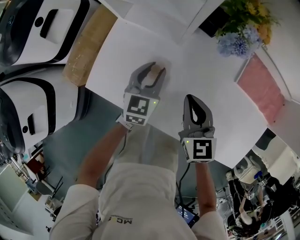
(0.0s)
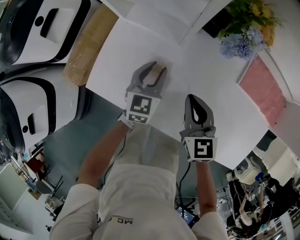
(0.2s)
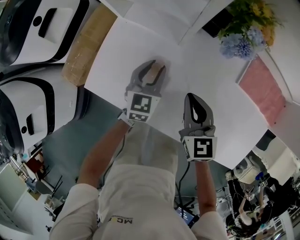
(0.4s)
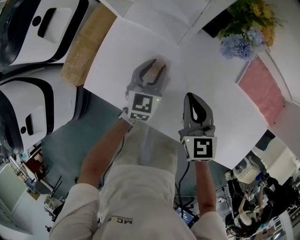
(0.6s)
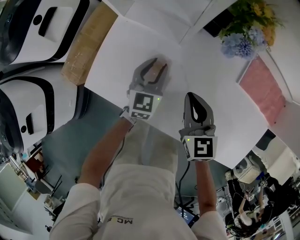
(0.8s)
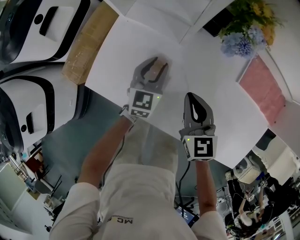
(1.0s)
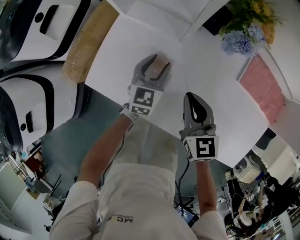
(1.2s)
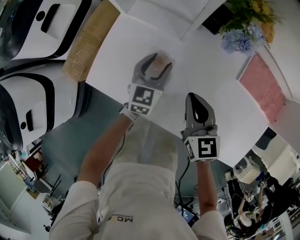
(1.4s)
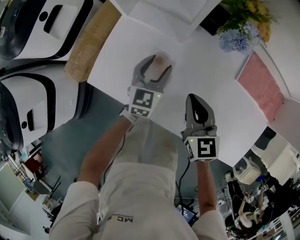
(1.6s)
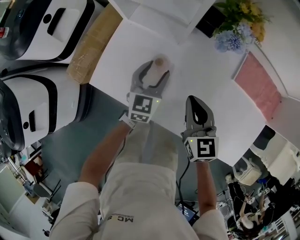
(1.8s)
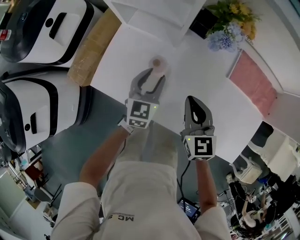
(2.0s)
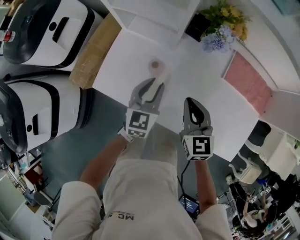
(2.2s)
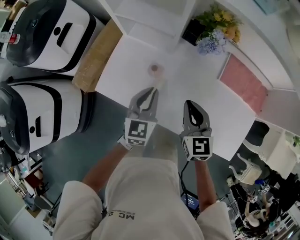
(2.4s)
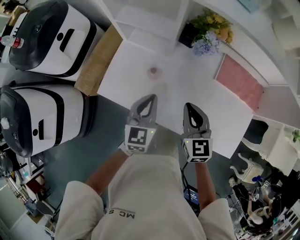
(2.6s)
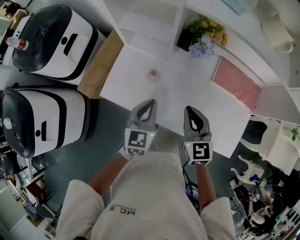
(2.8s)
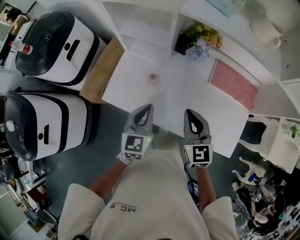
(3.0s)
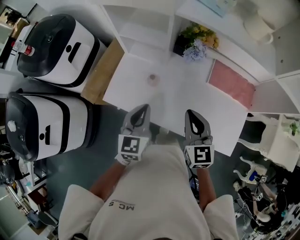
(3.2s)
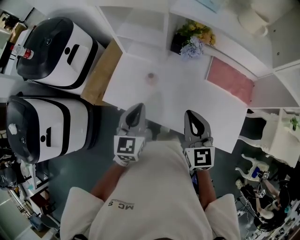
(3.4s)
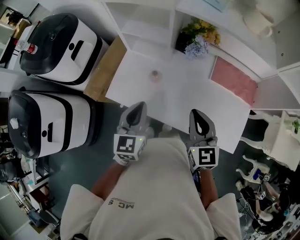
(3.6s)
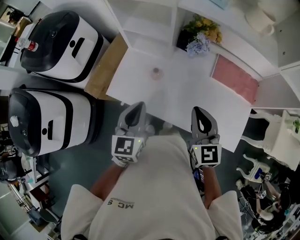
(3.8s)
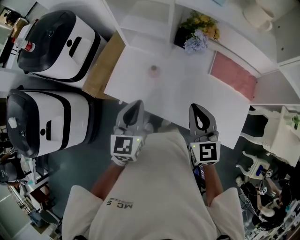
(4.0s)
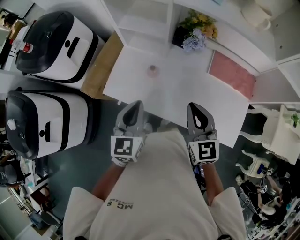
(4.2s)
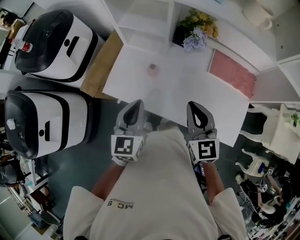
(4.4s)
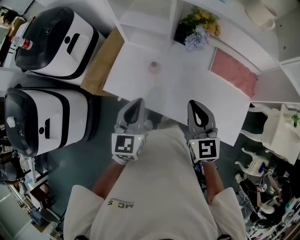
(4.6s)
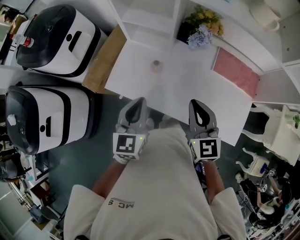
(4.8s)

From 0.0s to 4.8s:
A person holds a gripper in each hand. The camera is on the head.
From 0.0s to 1.6s: The left gripper opens.
From 1.6s to 3.2s: Both grippers move upward and backward, some 30 cm. The left gripper closes.
From 3.2s to 4.8s: The grippers move only a little.

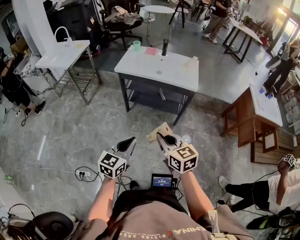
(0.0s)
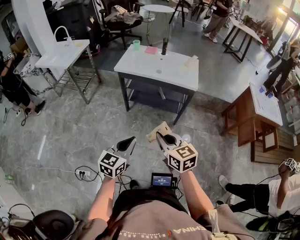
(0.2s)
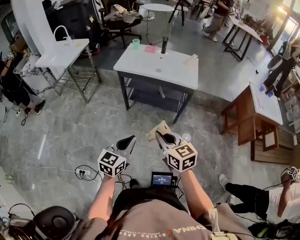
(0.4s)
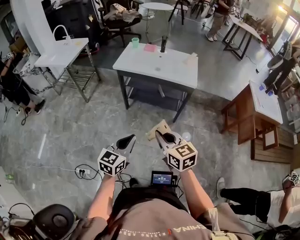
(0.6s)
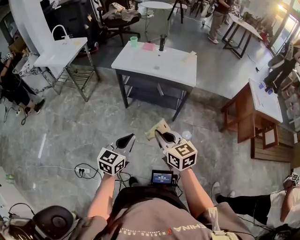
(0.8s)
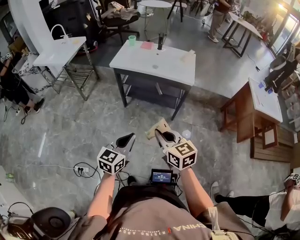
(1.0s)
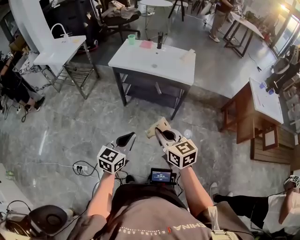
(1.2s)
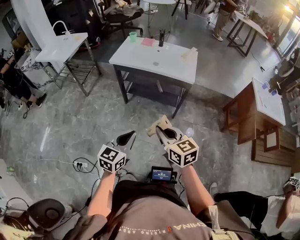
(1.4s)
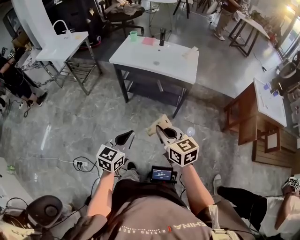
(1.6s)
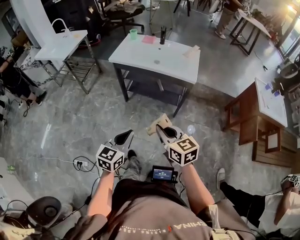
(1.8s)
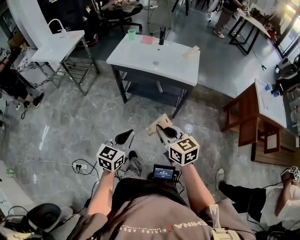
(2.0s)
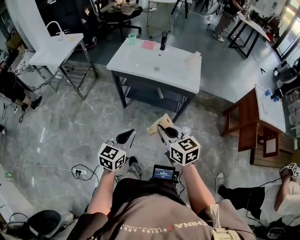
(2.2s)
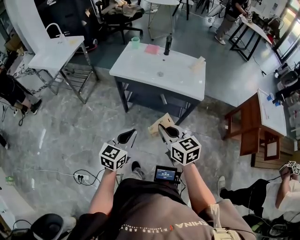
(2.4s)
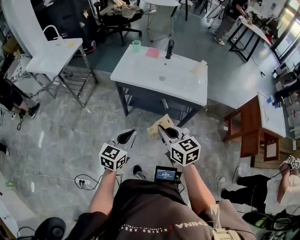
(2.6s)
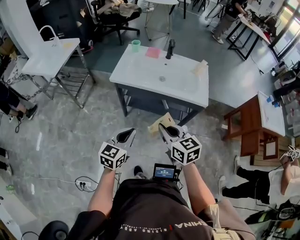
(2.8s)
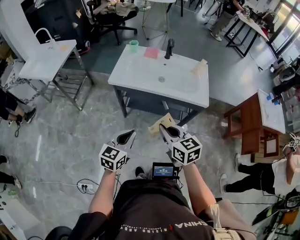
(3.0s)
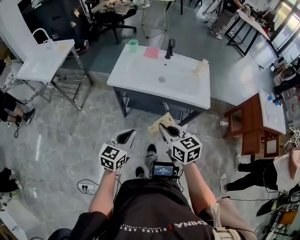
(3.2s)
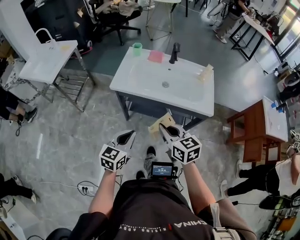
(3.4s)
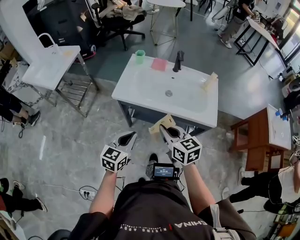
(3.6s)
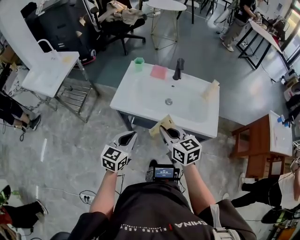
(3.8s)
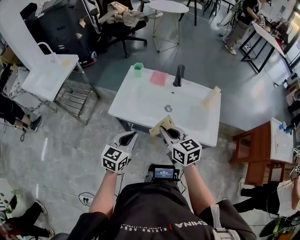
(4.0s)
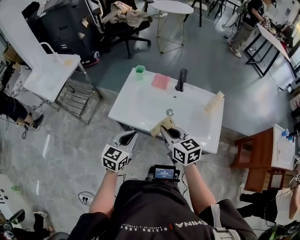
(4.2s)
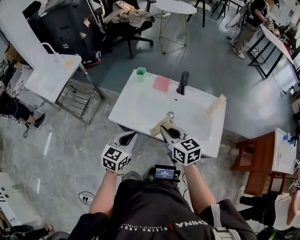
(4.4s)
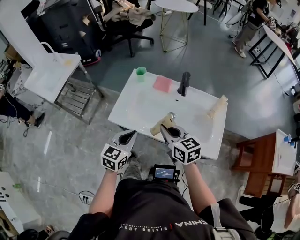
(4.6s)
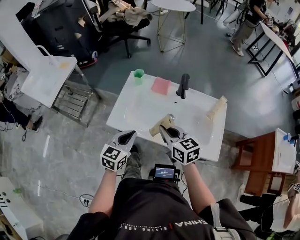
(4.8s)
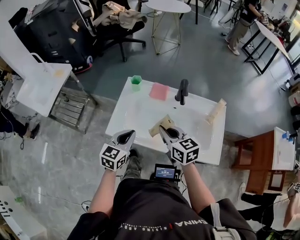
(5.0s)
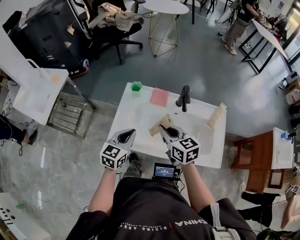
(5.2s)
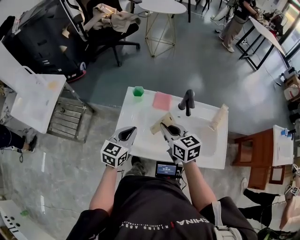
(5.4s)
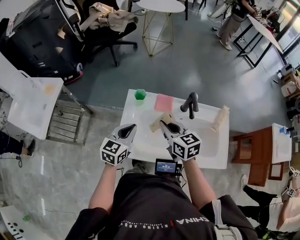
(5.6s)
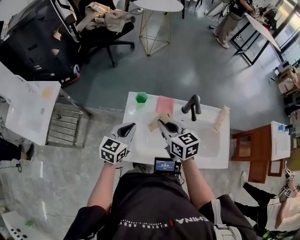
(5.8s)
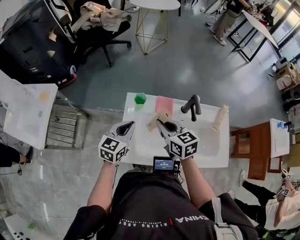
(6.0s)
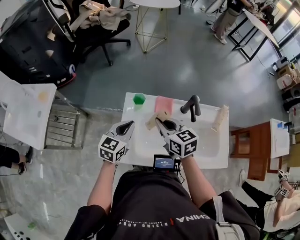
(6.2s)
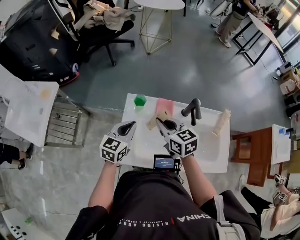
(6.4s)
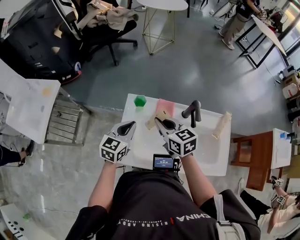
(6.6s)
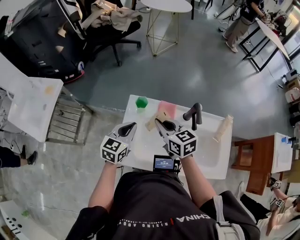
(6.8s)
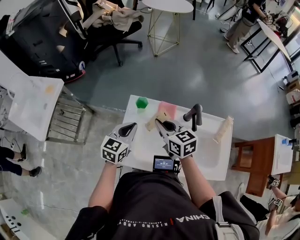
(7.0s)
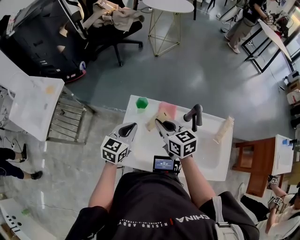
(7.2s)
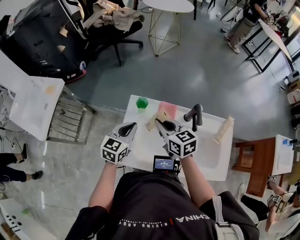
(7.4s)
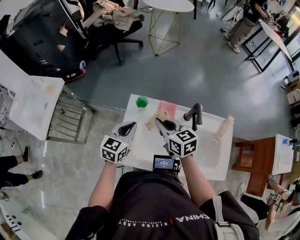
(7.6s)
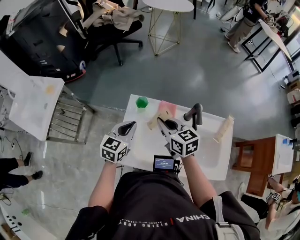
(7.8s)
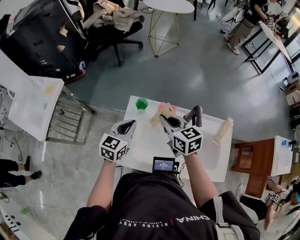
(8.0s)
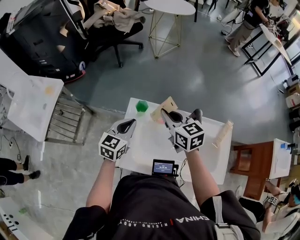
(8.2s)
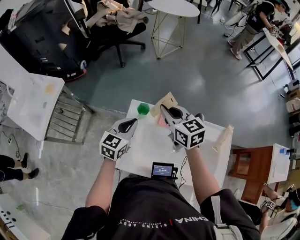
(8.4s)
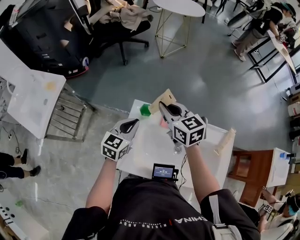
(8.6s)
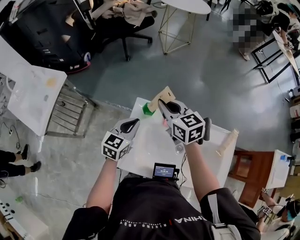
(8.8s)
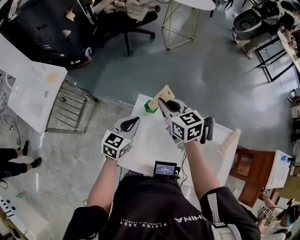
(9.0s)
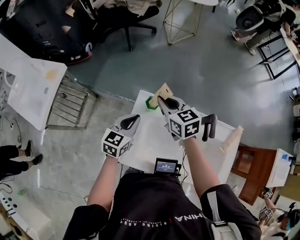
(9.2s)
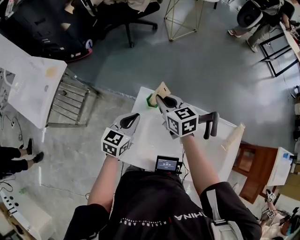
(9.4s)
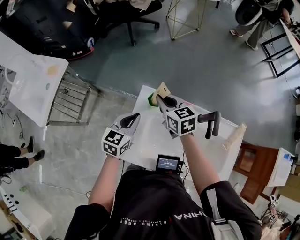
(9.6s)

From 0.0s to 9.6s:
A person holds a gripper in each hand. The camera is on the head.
From 0.0s to 1.6s: Both grippers travel together to the right, some 5 cm.
From 1.6s to 3.2s: Both grippers travel together forward, some 30 cm.
From 3.2s to 4.8s: The two grippers go approximately 30 cm forward.
From 4.8s to 6.4s: The left gripper heads forward, covering approximately 25 cm, while the right gripper shifts roughly 20 cm forward and to the left.
From 6.4s to 8.0s: The grippers stay close to where they were, moving slightly.
From 8.0s to 9.6s: The right gripper shifts approximately 15 cm forward, to the left and downward, while the left gripper changes place by some 5 cm.

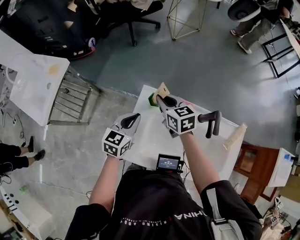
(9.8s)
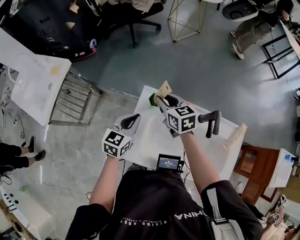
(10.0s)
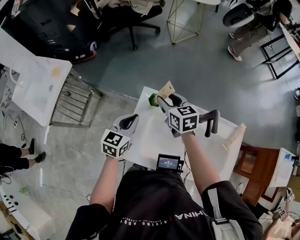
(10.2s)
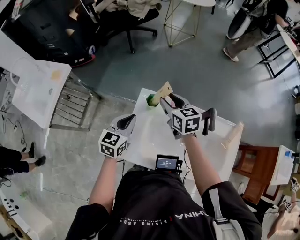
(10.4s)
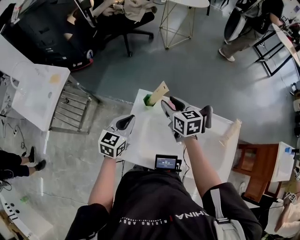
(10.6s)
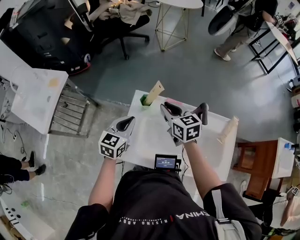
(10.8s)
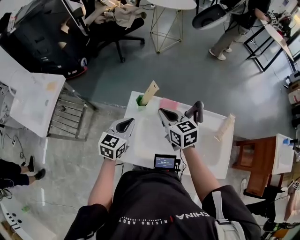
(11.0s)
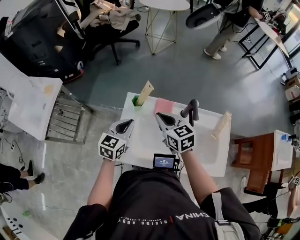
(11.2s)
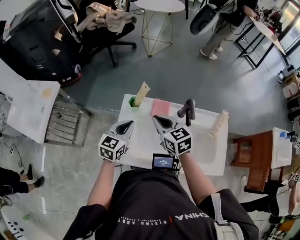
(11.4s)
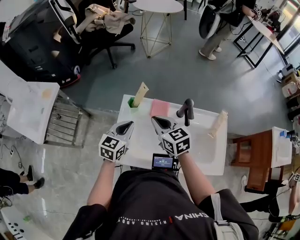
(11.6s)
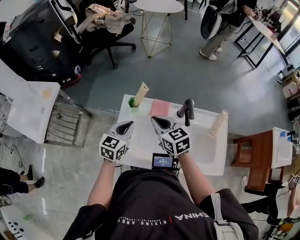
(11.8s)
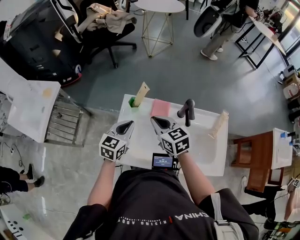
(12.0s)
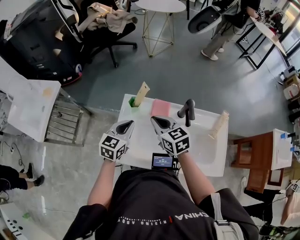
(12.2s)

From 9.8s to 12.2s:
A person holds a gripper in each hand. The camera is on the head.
From 9.8s to 11.0s: The left gripper shifts by approximately 5 cm, while the right gripper goes approximately 10 cm backward, to the right and upward, and opens, then closes again.
From 11.0s to 12.2s: The grippers stay close to where they were, moving slightly.

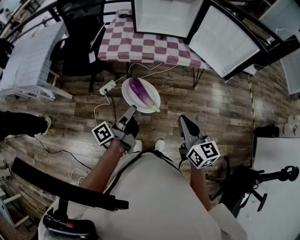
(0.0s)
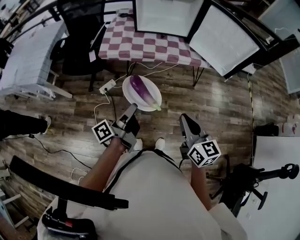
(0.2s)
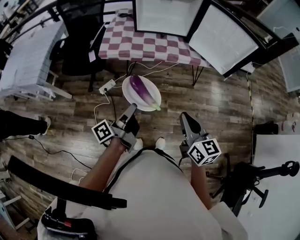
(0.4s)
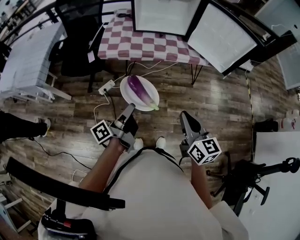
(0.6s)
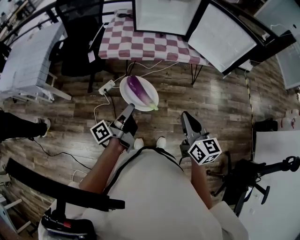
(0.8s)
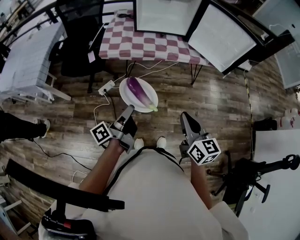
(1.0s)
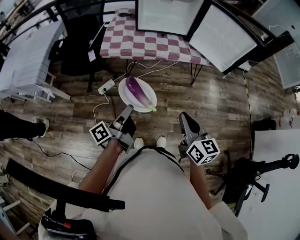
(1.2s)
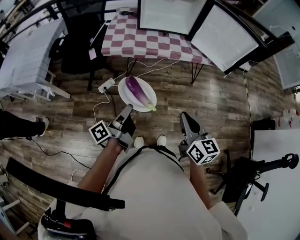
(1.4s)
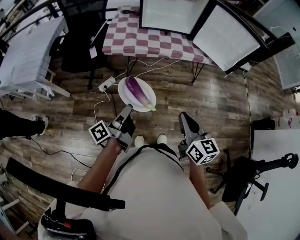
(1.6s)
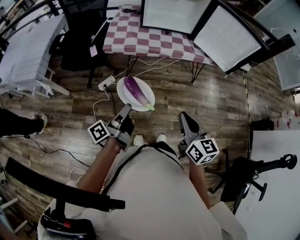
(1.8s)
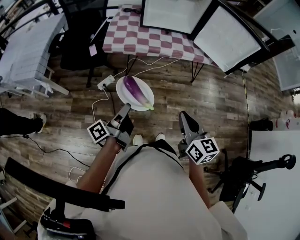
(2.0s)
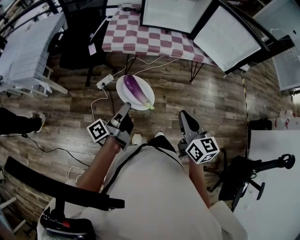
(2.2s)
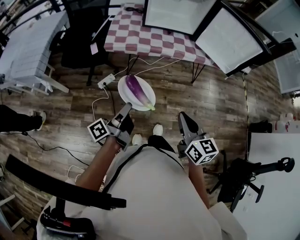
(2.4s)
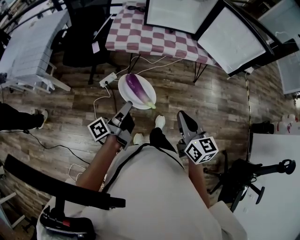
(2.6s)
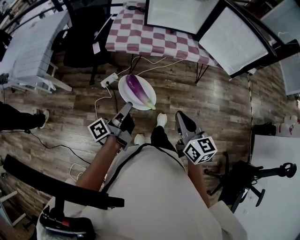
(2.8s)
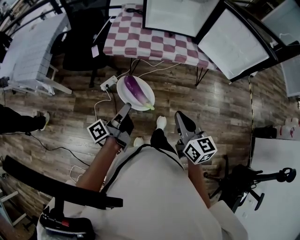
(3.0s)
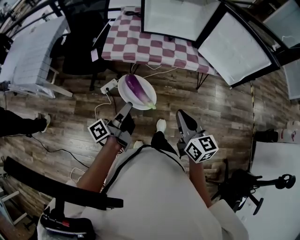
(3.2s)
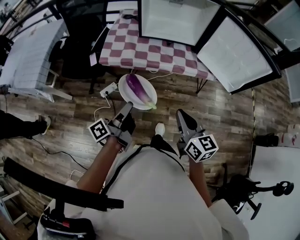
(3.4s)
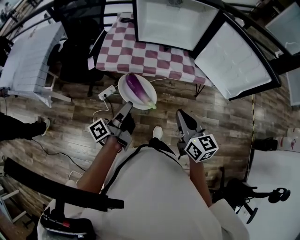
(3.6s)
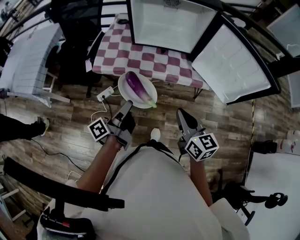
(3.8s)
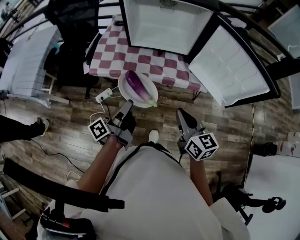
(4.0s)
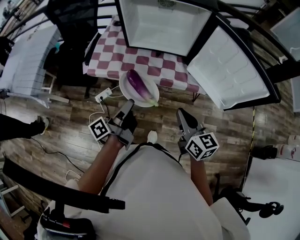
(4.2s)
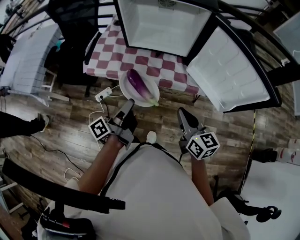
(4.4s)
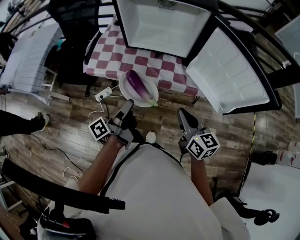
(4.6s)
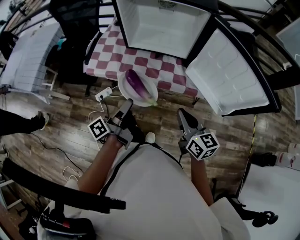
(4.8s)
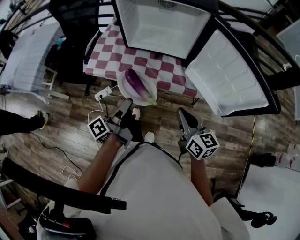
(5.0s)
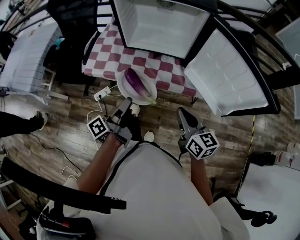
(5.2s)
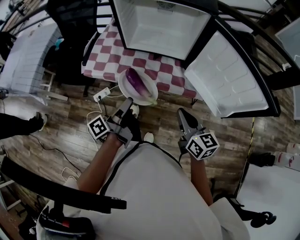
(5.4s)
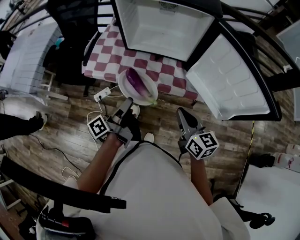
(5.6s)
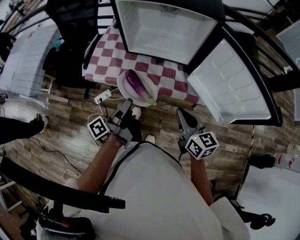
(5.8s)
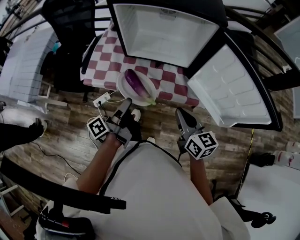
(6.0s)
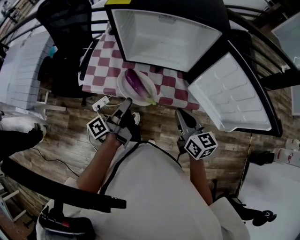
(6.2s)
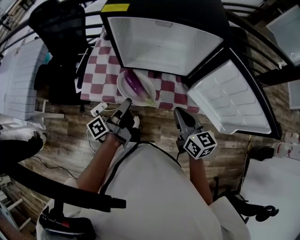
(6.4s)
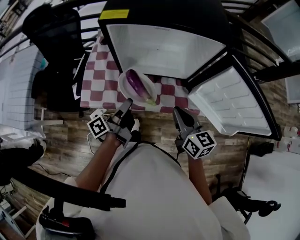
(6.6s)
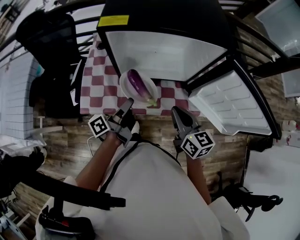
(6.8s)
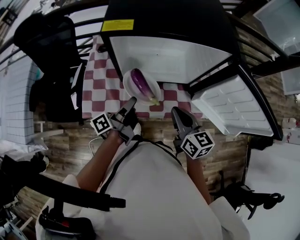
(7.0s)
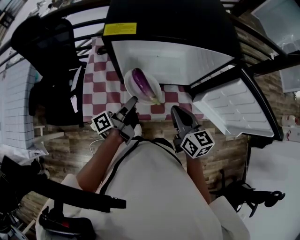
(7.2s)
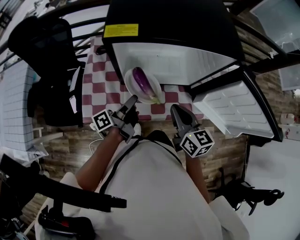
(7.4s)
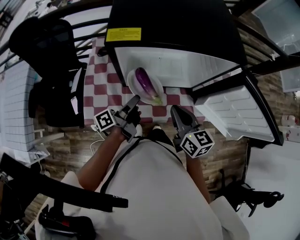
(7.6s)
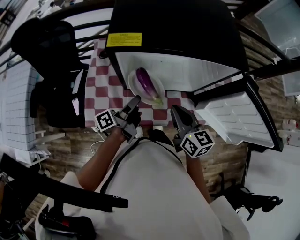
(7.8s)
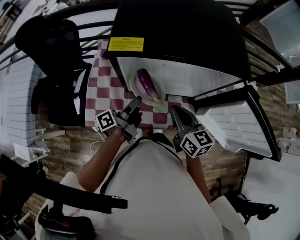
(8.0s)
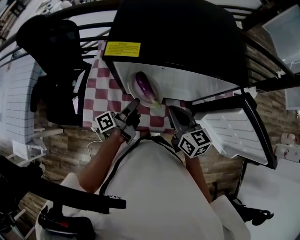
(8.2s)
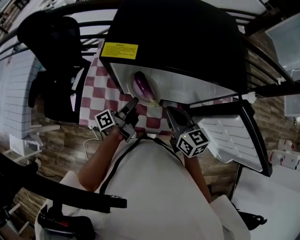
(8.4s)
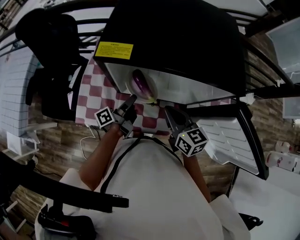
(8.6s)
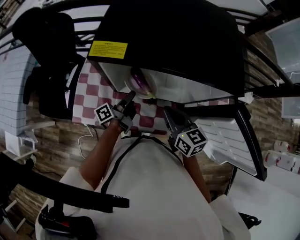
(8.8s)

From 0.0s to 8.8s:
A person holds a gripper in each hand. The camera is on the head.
From 0.0s to 1.4s: The right gripper shifts by approximately 5 cm.
From 1.4s to 3.0s: The right gripper ends up approximately 5 cm from where it was.
From 3.0s to 4.4s: The right gripper moves some 30 cm.
From 4.4s to 5.8s: The right gripper shifts by about 5 cm.
From 5.8s to 7.4s: The right gripper moves approximately 25 cm.
From 7.4s to 8.8s: The right gripper ends up about 10 cm from where it was.
